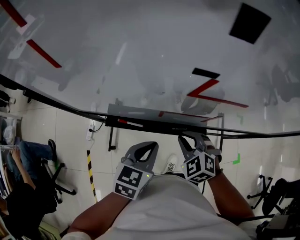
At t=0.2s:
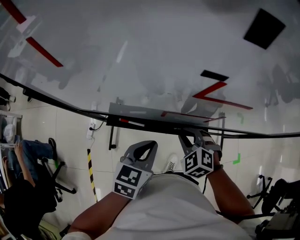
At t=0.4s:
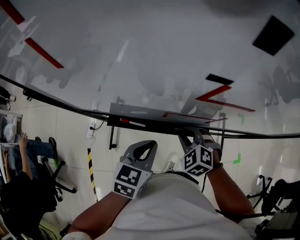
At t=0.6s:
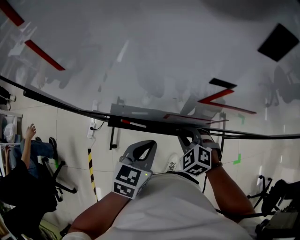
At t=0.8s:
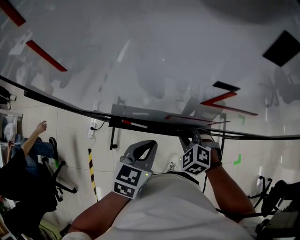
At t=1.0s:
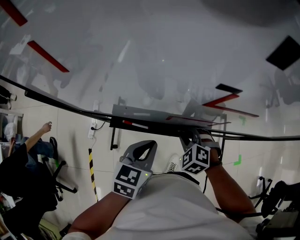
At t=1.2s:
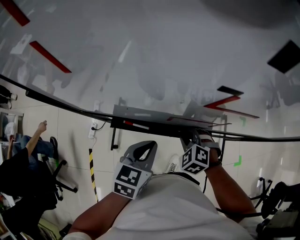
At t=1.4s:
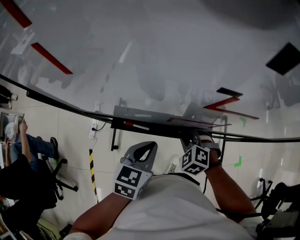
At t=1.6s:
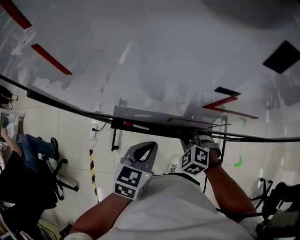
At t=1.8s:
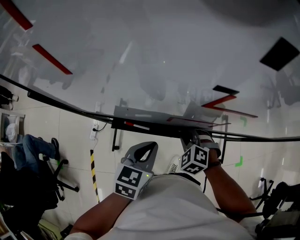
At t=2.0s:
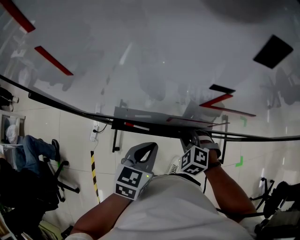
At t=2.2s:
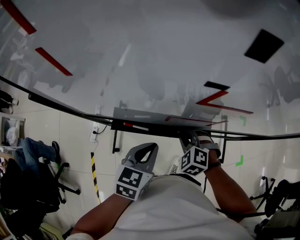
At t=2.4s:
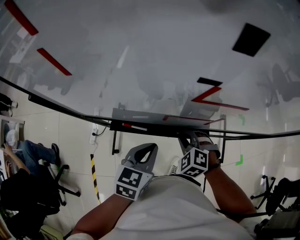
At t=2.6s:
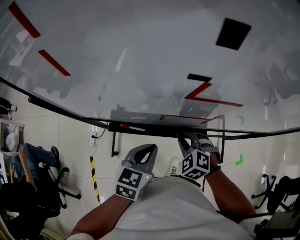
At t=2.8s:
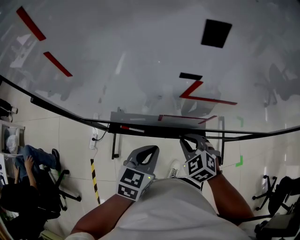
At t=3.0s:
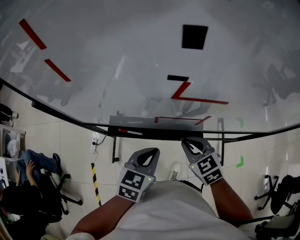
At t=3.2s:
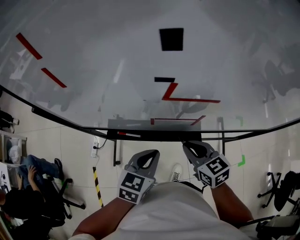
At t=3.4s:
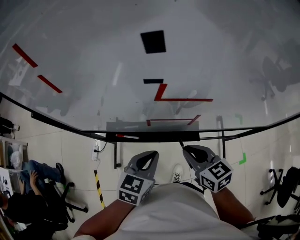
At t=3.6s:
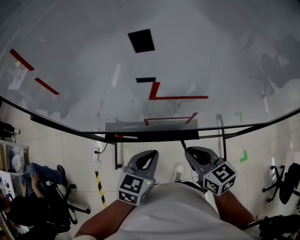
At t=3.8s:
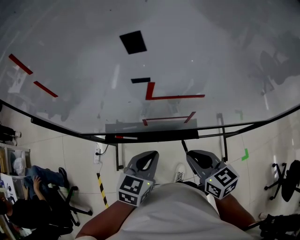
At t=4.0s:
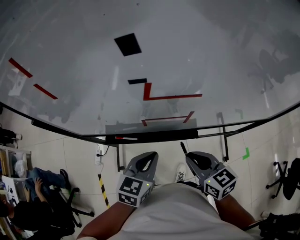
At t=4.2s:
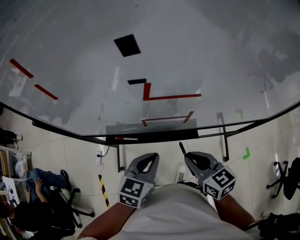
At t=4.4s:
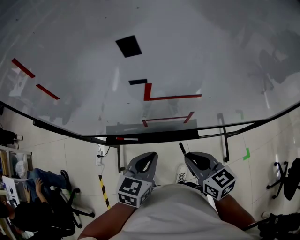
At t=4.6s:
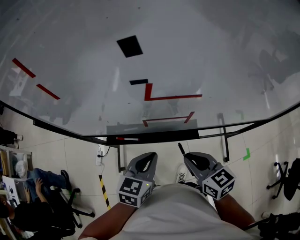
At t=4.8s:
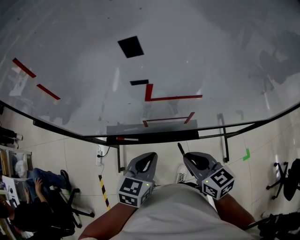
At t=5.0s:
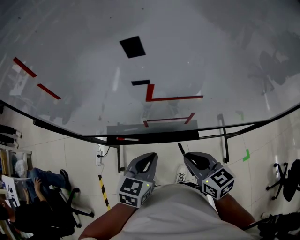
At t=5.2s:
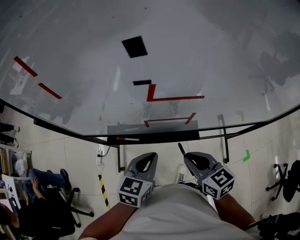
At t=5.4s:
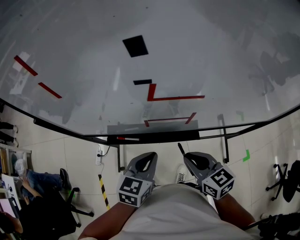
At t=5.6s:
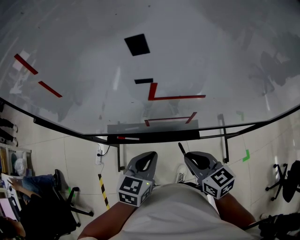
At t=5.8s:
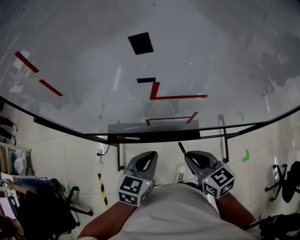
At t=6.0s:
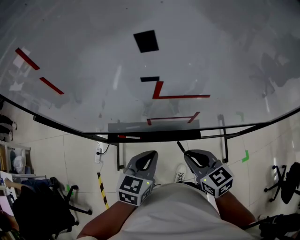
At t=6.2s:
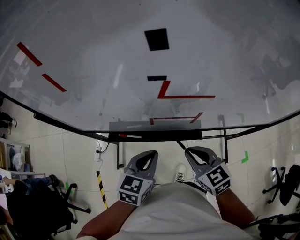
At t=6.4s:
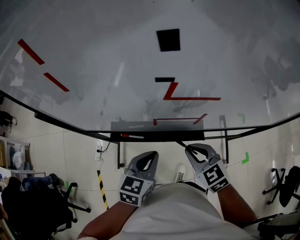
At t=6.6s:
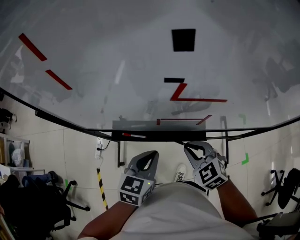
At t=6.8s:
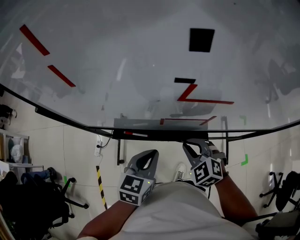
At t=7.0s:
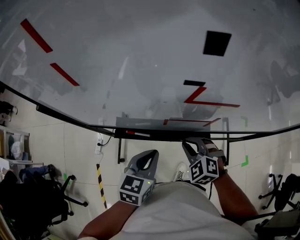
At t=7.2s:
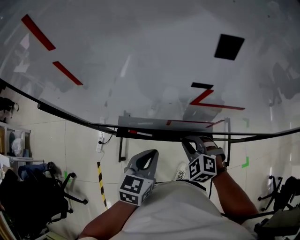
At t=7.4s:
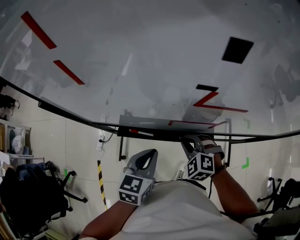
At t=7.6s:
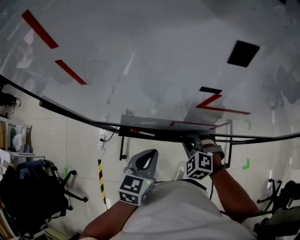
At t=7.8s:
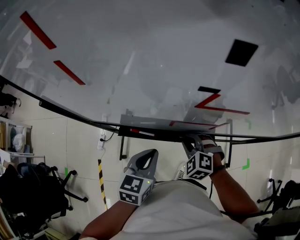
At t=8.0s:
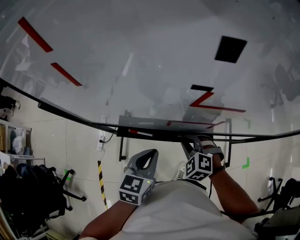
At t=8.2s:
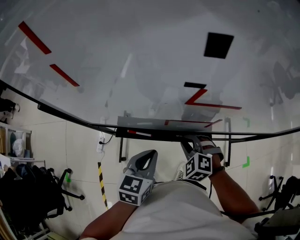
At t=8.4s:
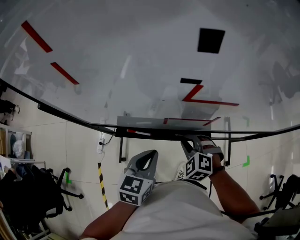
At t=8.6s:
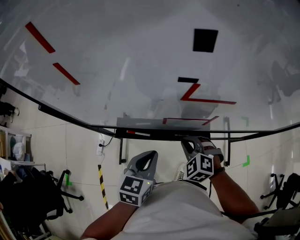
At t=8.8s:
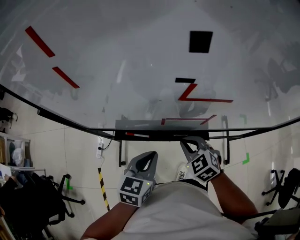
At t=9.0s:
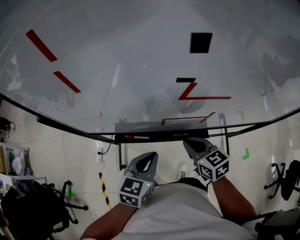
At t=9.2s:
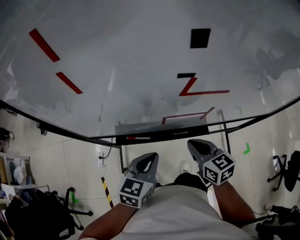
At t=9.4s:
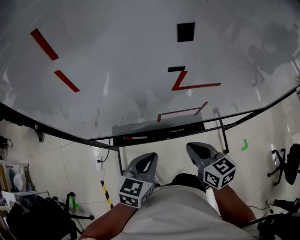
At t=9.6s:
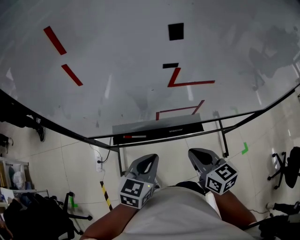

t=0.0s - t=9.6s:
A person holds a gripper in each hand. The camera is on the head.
t=0.0s - t=1.6s: The right gripper changes place by about 5 cm.
t=1.6s - t=3.2s: The right gripper moves upward, approximately 10 cm, and twists approximately 50 degrees clockwise, seen from behind.
t=3.2s - t=4.8s: The right gripper is displaced backward by roughly 5 cm.
t=4.8s - t=6.4s: The right gripper swivels about 30 degrees.
t=6.4s - t=8.0s: The right gripper heads downward, covering some 10 cm, and turns by about 40 degrees.
t=8.0s - t=9.6s: The right gripper shifts approximately 15 cm upward and backward, and twists some 60 degrees clockwise, seen from behind. Meanwhile the left gripper changes place by about 5 cm.

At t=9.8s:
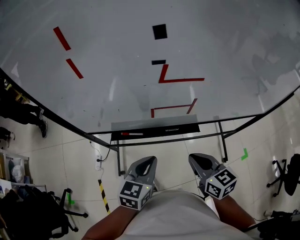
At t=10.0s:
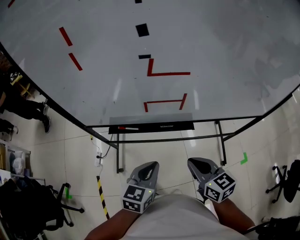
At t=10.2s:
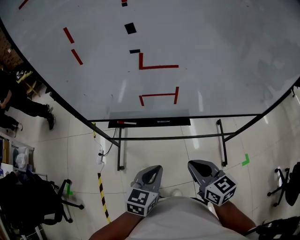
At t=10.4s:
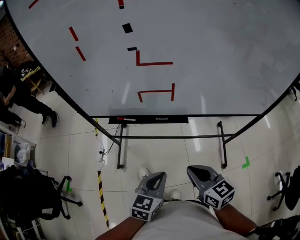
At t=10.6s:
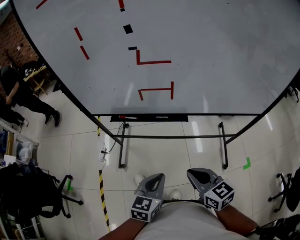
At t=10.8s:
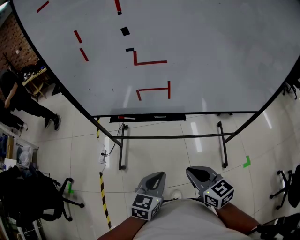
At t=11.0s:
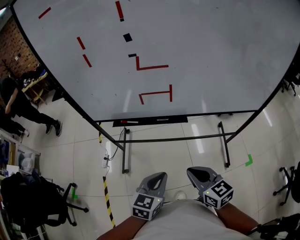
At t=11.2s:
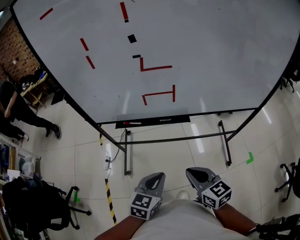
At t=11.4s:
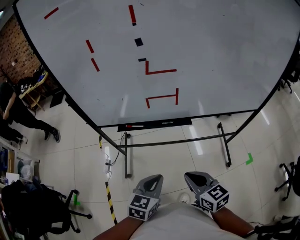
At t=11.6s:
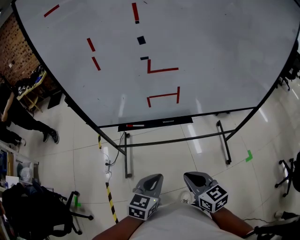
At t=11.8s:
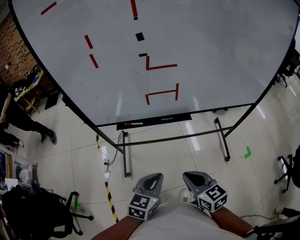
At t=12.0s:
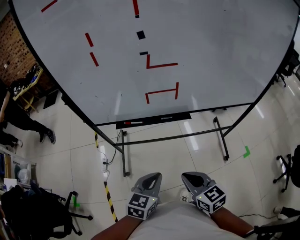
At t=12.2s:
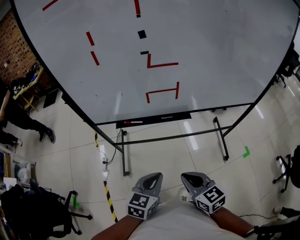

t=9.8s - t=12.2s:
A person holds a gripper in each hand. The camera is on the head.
t=9.8s - t=11.0s: The left gripper goes about 20 cm backward and to the right. The right gripper heads backward, covering roughly 15 cm.
t=11.0s - t=12.2s: The two grippers go some 10 cm to the left.

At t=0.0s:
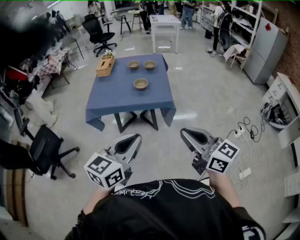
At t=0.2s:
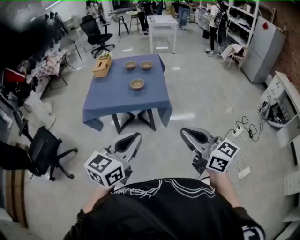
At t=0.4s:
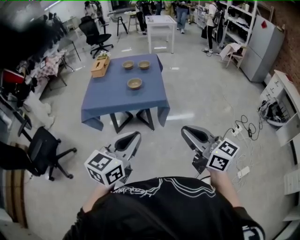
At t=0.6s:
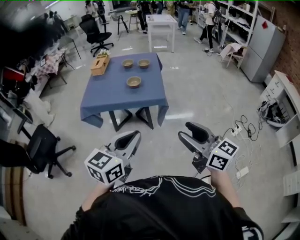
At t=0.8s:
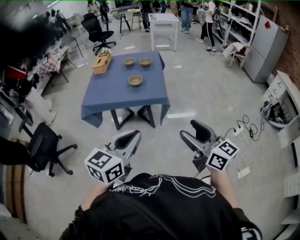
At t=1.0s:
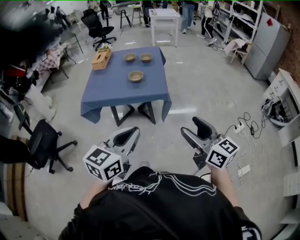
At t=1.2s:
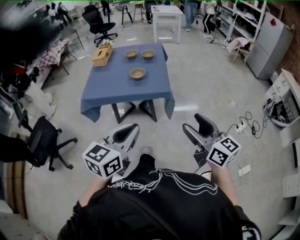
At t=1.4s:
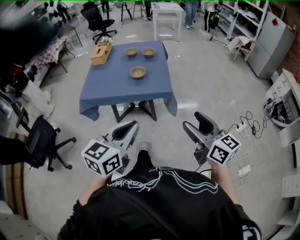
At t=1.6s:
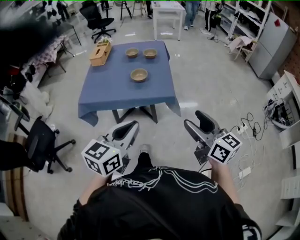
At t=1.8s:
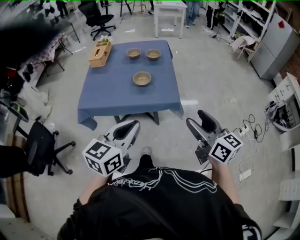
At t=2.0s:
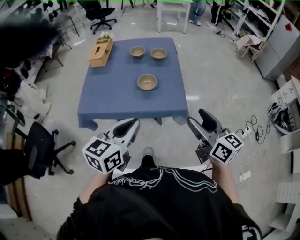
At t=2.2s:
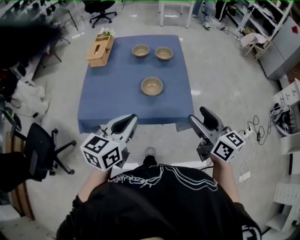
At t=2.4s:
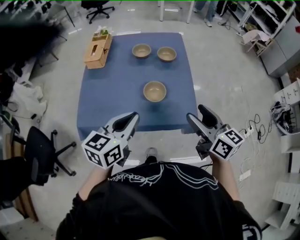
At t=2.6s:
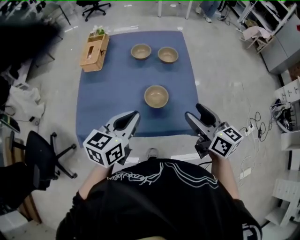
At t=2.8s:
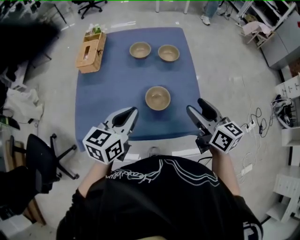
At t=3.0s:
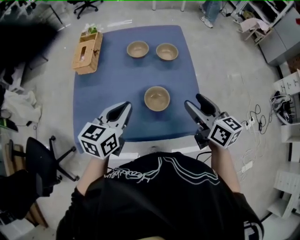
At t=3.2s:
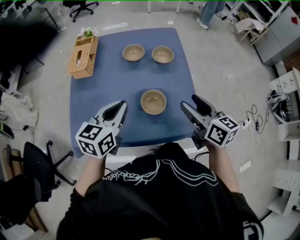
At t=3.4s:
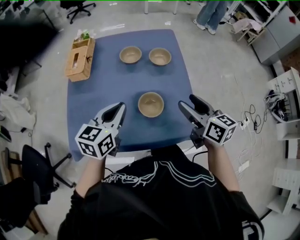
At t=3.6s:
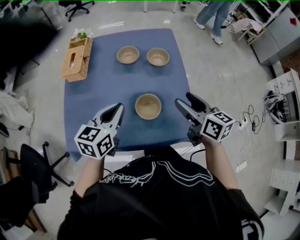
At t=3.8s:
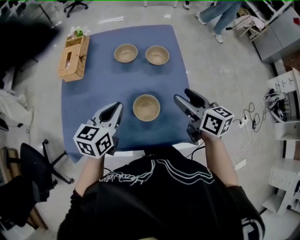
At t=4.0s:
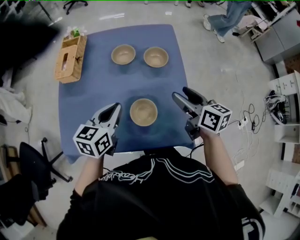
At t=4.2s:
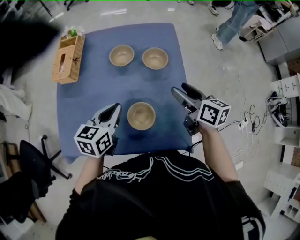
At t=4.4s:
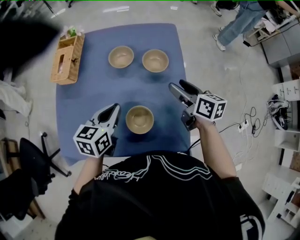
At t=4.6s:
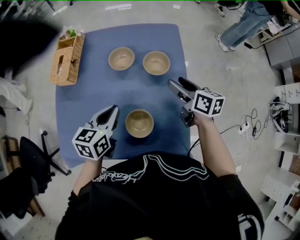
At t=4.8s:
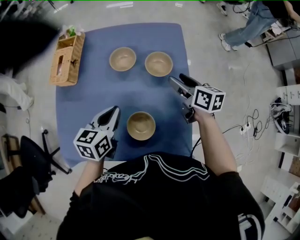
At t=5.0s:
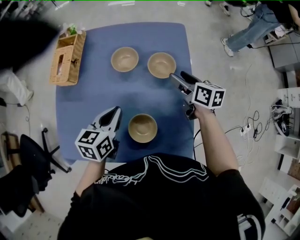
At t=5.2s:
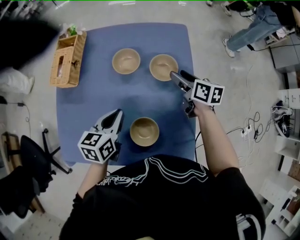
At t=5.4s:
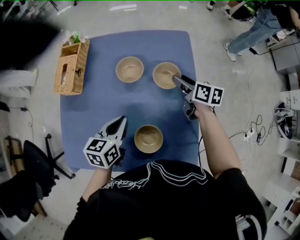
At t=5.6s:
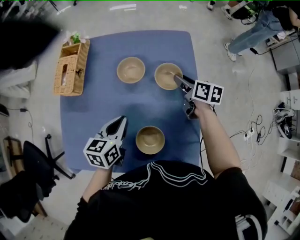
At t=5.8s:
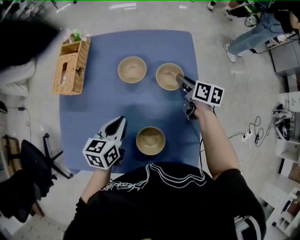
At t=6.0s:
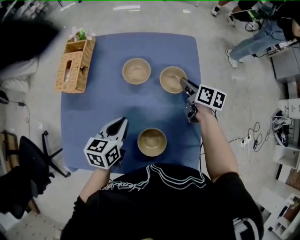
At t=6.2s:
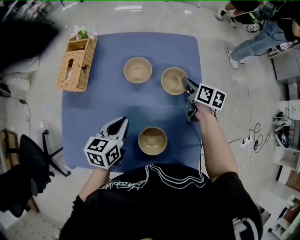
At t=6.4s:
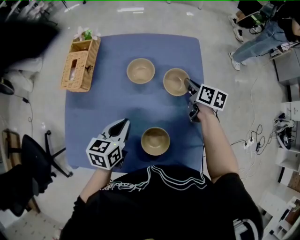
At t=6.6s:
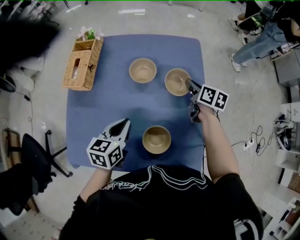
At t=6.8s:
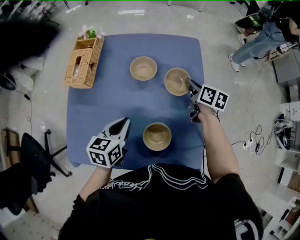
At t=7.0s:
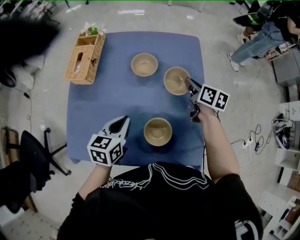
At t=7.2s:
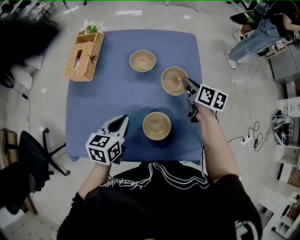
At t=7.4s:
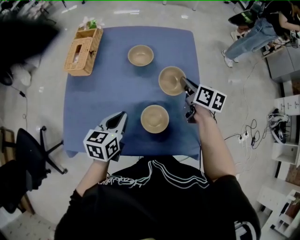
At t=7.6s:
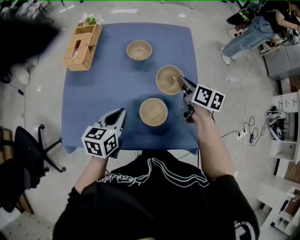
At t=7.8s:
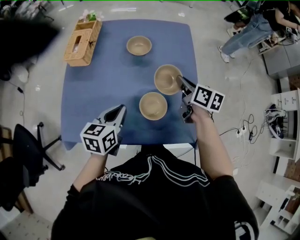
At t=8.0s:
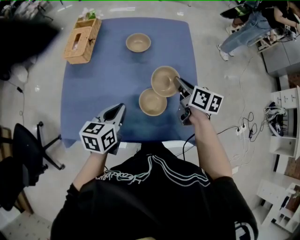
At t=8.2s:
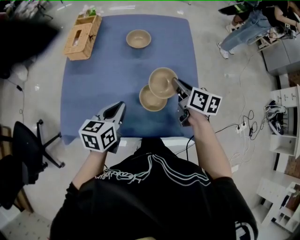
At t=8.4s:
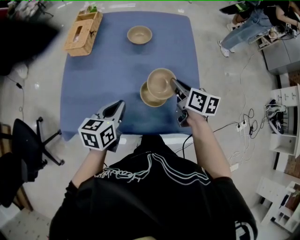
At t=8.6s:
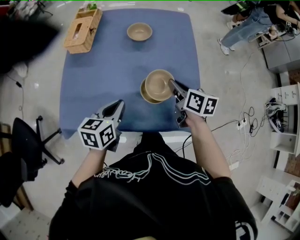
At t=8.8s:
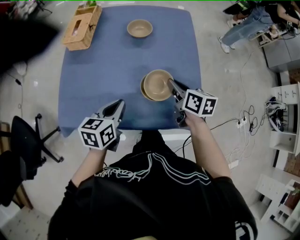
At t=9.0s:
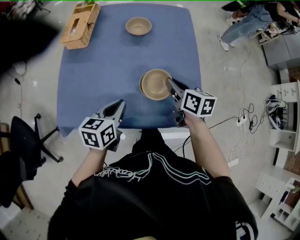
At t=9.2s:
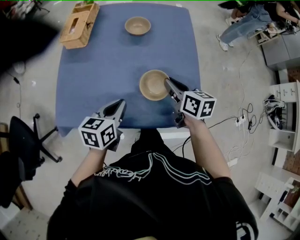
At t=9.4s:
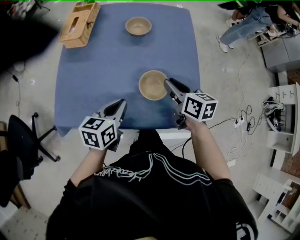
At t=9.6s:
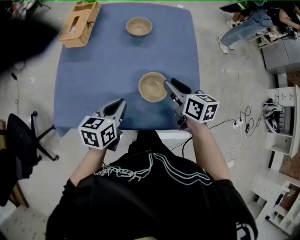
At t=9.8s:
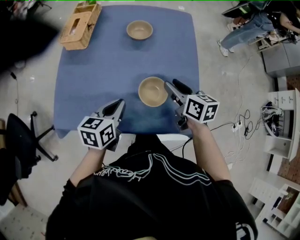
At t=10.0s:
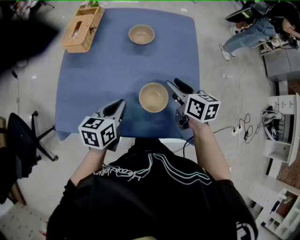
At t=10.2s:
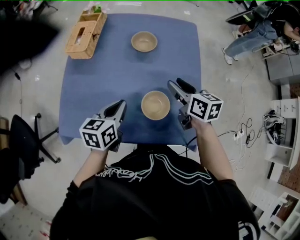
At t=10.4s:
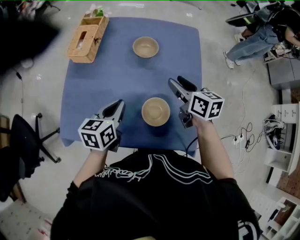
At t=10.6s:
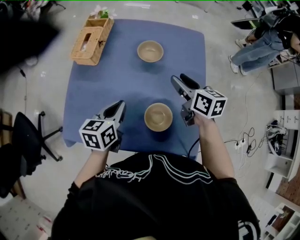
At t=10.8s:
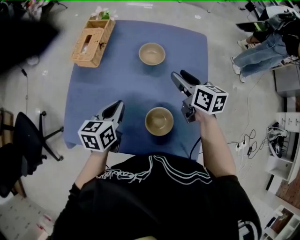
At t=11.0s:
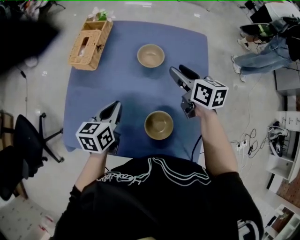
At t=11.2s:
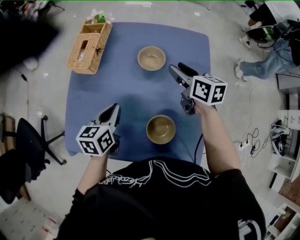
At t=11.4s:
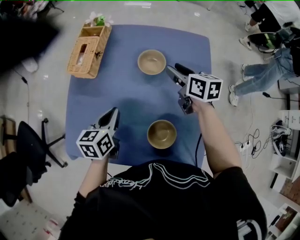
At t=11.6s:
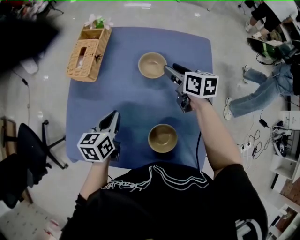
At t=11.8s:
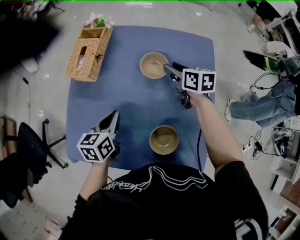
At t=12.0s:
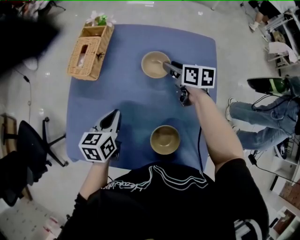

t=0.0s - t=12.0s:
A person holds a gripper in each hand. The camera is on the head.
t=0.0s - t=1.6s: Both grippers move forward and downward, some 15 cm. The right gripper opens.
t=1.6s - t=3.0s: Both grippers move forward, roughly 35 cm.
t=3.0s - t=4.4s: The left gripper goes some 10 cm forward and downward, while the right gripper shifts approximately 20 cm forward and downward.
t=4.4s - t=6.0s: The left gripper is displaced downward by about 5 cm. Meanwhile the right gripper goes some 15 cm forward and downward, and closes up.
t=6.0s - t=7.6s: The right gripper shifts about 15 cm backward and upward, while the left gripper shifts about 10 cm backward.
t=7.6s - t=9.0s: The right gripper heads backward and to the left, covering roughly 15 cm. The left gripper shifts approximately 5 cm backward.
t=9.0s - t=10.4s: The left gripper is displaced forward by roughly 10 cm, while the right gripper shifts approximately 10 cm forward and upward, and opens its fingers.
t=10.4s - t=12.0s: The left gripper moves forward, about 5 cm, while the right gripper moves forward, some 20 cm.
